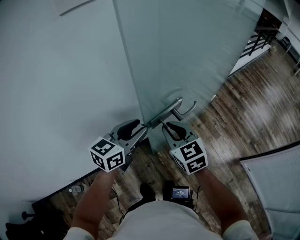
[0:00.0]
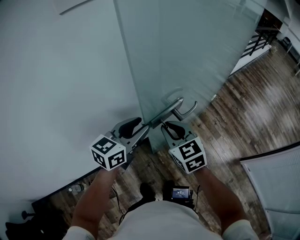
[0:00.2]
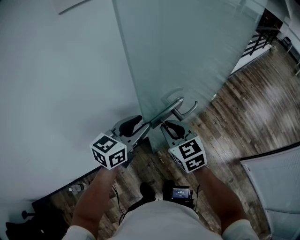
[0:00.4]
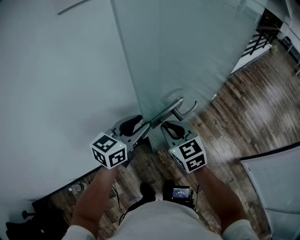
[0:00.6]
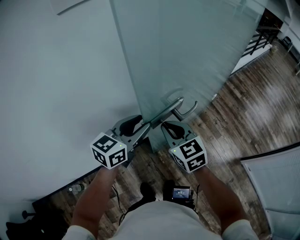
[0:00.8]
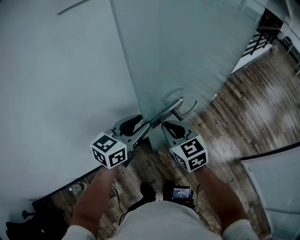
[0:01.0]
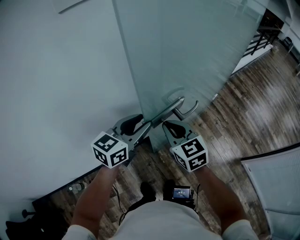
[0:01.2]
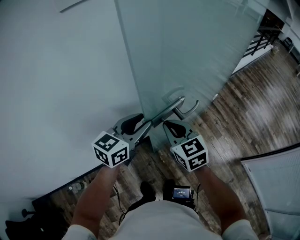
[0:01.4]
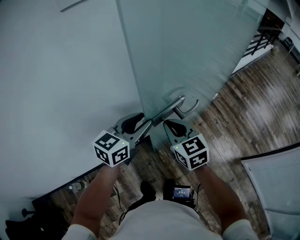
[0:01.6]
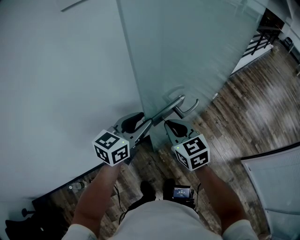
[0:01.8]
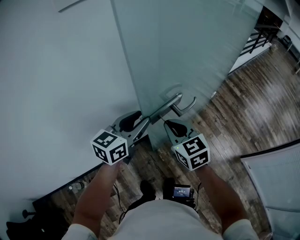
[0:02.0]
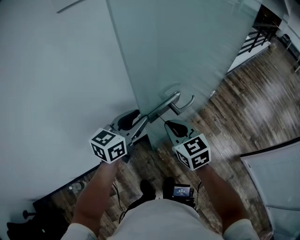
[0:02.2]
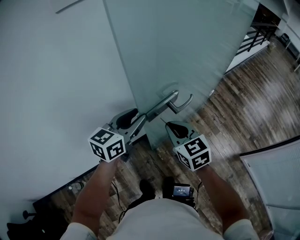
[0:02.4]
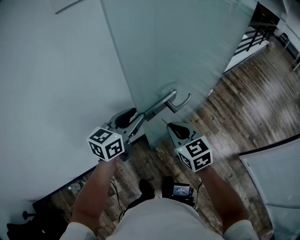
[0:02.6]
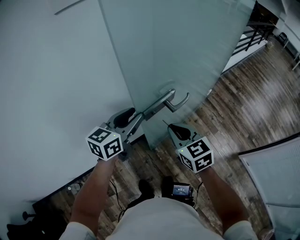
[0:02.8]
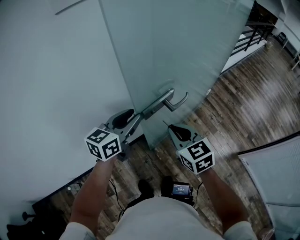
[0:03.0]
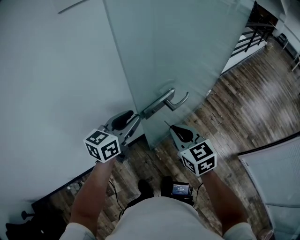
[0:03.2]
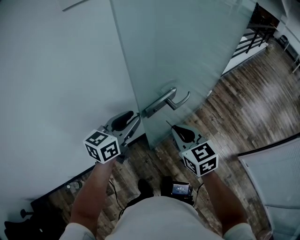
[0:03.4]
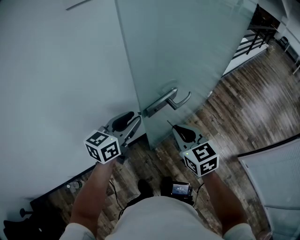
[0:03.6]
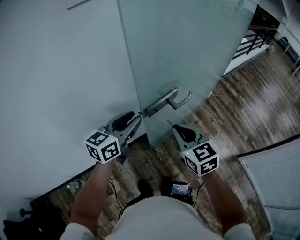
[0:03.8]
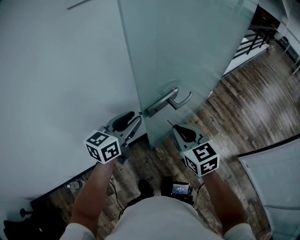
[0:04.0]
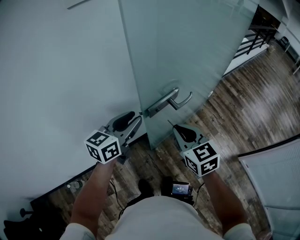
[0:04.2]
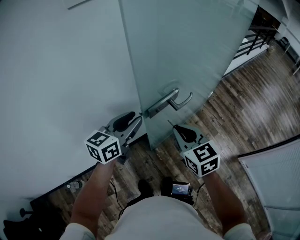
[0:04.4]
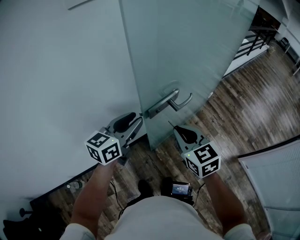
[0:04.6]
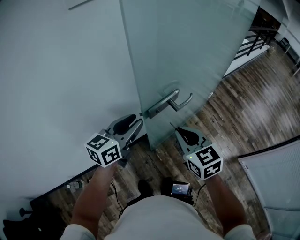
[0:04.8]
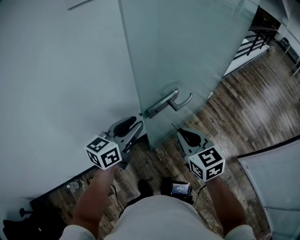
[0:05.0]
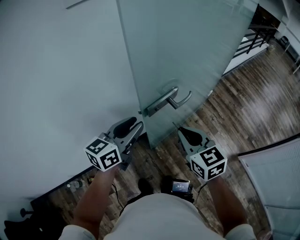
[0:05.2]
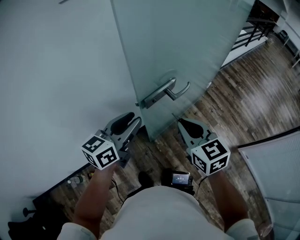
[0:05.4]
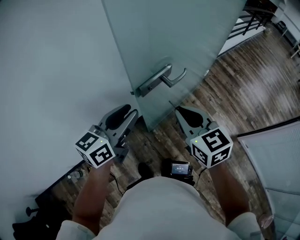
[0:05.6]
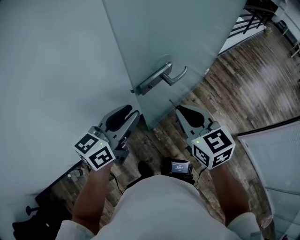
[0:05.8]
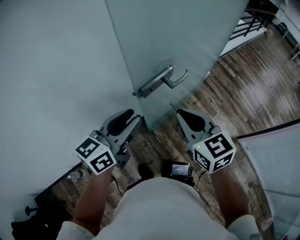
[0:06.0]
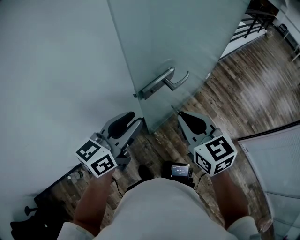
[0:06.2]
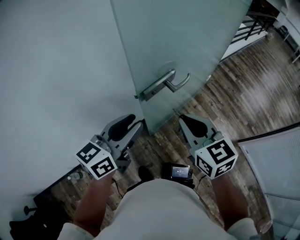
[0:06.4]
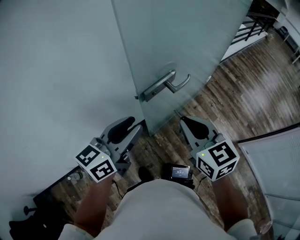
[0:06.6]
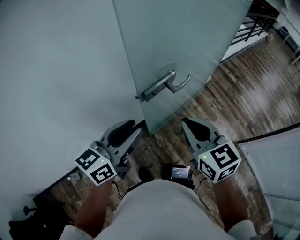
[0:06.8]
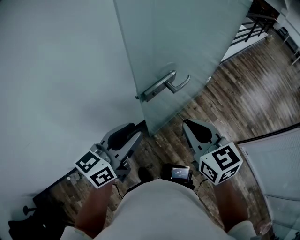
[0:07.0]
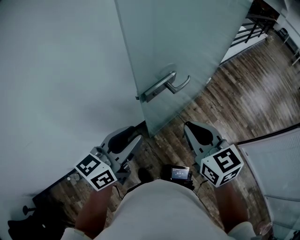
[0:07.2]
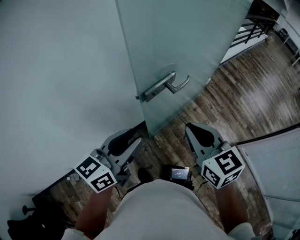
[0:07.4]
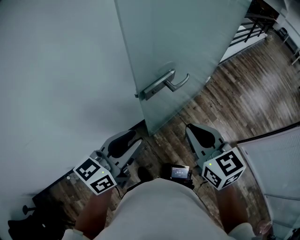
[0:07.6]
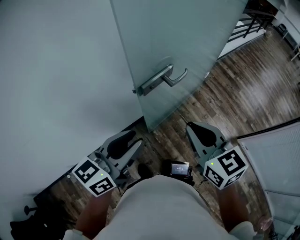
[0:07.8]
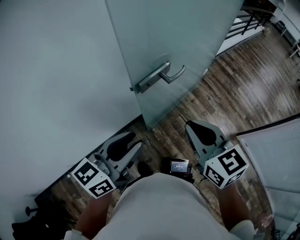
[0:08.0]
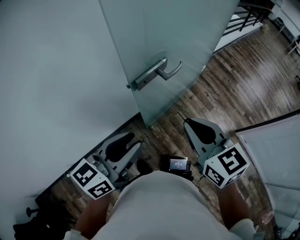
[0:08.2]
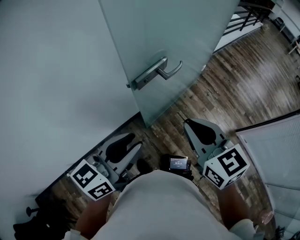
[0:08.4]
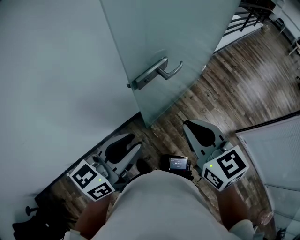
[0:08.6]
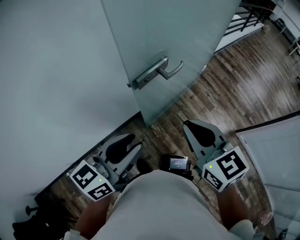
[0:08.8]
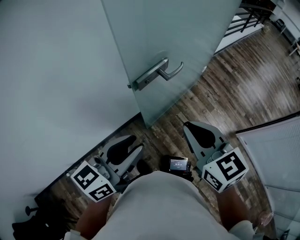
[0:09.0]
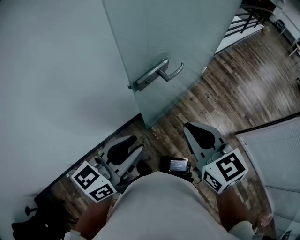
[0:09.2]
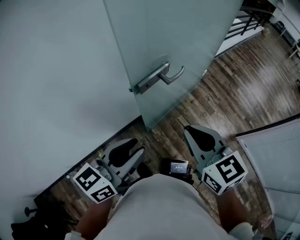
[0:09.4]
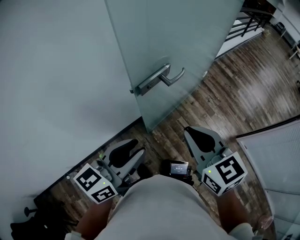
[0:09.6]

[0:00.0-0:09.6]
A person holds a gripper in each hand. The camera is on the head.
0:00.0 to 0:01.6: There are only small adjustments of the grippers.
0:01.6 to 0:03.2: The right gripper shifts approximately 10 cm to the right and backward.
0:03.2 to 0:04.8: There are only small adjustments of the grippers.
0:04.8 to 0:06.4: The left gripper moves backward, some 5 cm. The right gripper changes place by some 5 cm.
0:06.4 to 0:08.0: The two grippers go about 5 cm backward.
0:08.0 to 0:09.6: The grippers stay close to where they were, moving slightly.

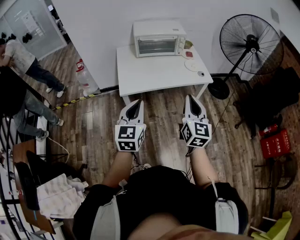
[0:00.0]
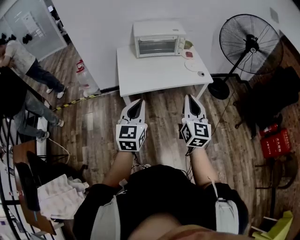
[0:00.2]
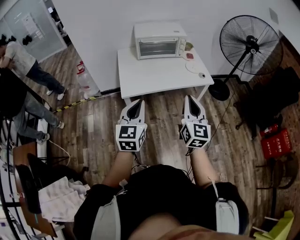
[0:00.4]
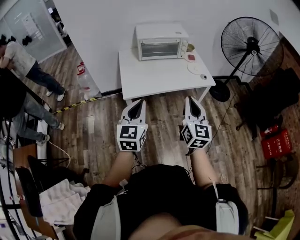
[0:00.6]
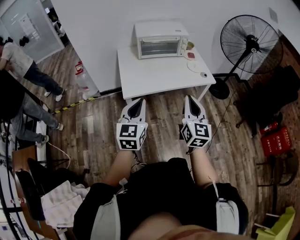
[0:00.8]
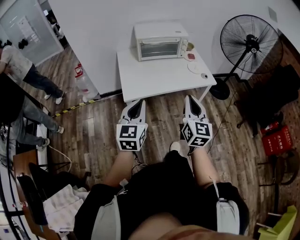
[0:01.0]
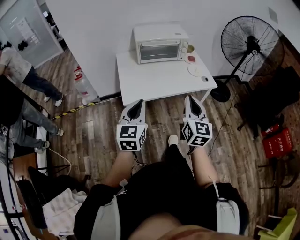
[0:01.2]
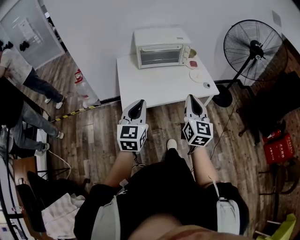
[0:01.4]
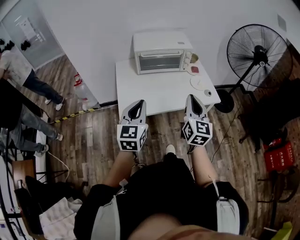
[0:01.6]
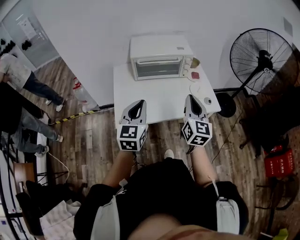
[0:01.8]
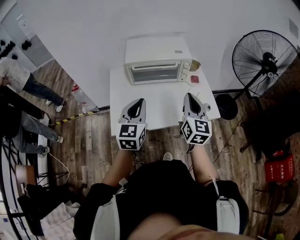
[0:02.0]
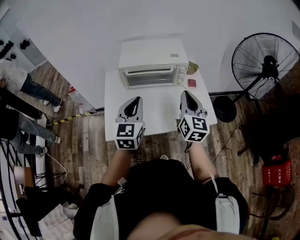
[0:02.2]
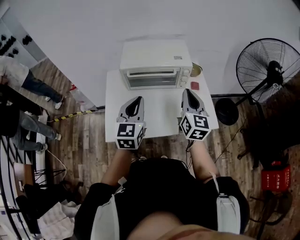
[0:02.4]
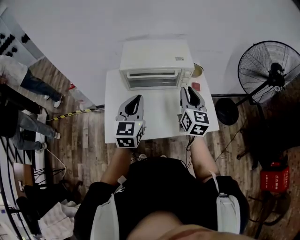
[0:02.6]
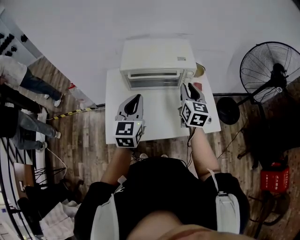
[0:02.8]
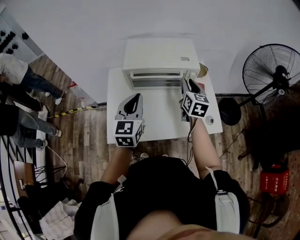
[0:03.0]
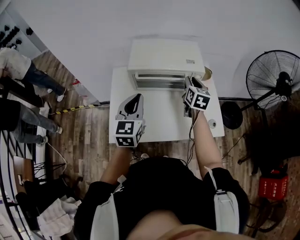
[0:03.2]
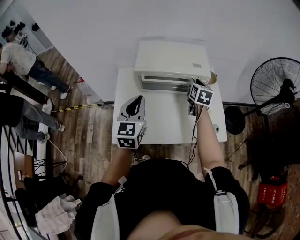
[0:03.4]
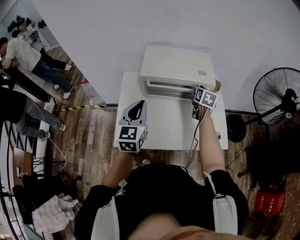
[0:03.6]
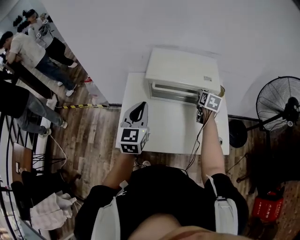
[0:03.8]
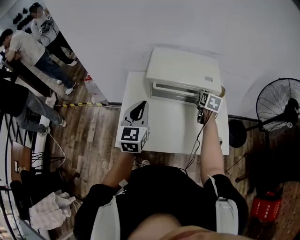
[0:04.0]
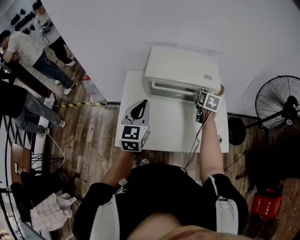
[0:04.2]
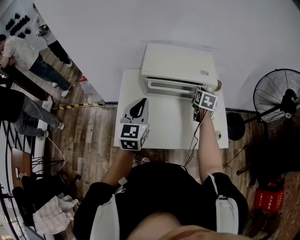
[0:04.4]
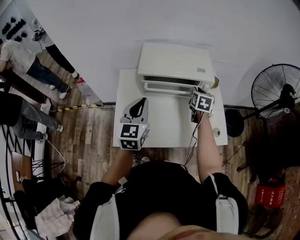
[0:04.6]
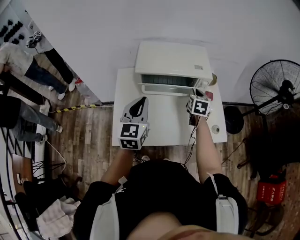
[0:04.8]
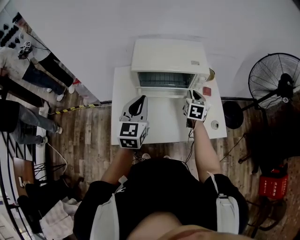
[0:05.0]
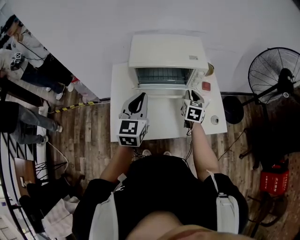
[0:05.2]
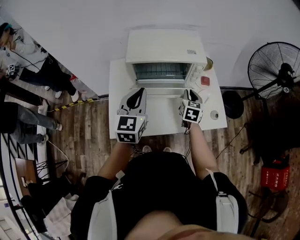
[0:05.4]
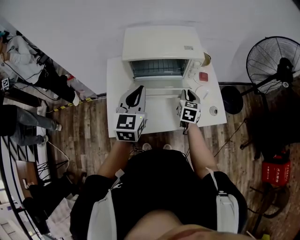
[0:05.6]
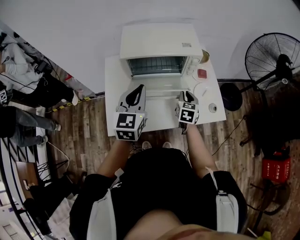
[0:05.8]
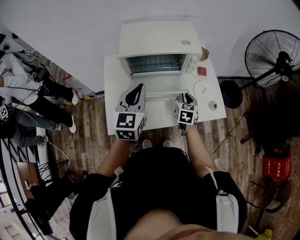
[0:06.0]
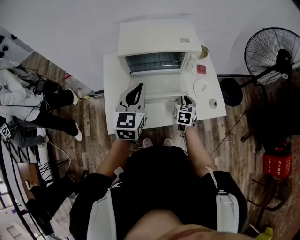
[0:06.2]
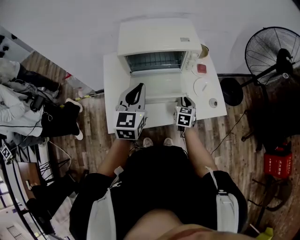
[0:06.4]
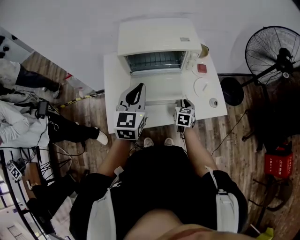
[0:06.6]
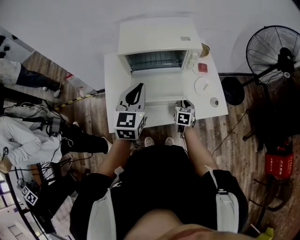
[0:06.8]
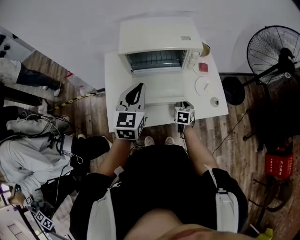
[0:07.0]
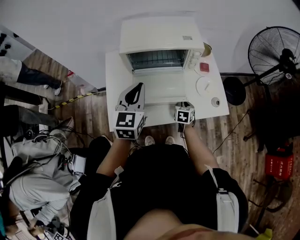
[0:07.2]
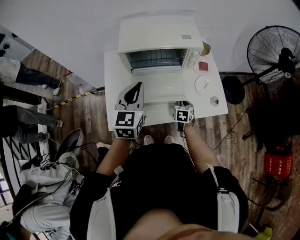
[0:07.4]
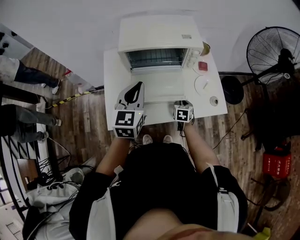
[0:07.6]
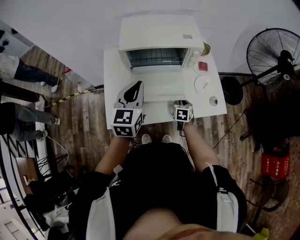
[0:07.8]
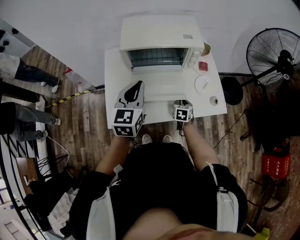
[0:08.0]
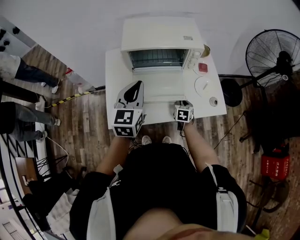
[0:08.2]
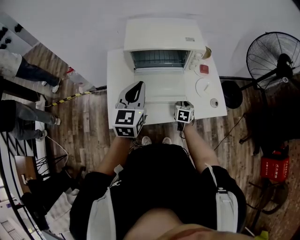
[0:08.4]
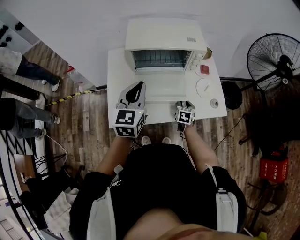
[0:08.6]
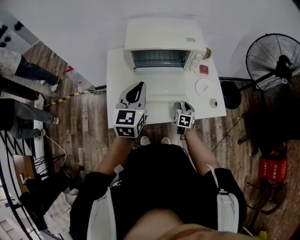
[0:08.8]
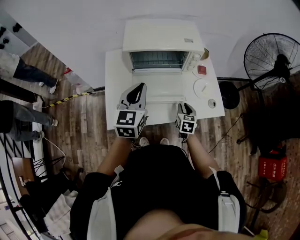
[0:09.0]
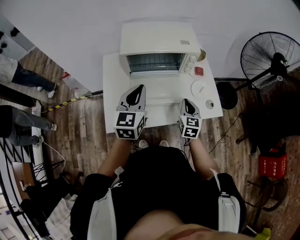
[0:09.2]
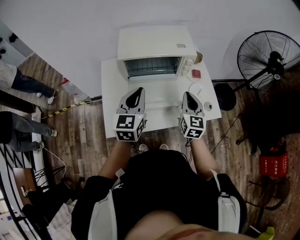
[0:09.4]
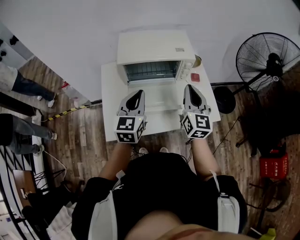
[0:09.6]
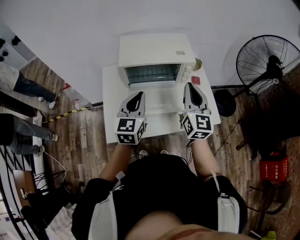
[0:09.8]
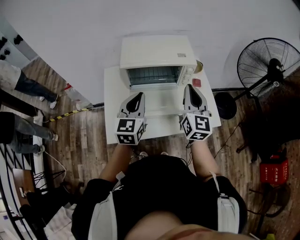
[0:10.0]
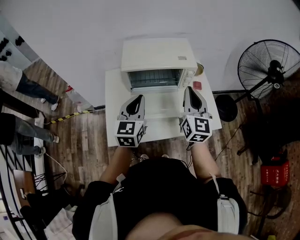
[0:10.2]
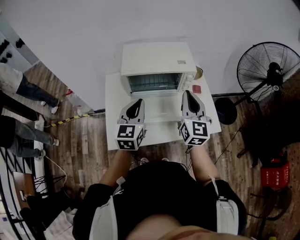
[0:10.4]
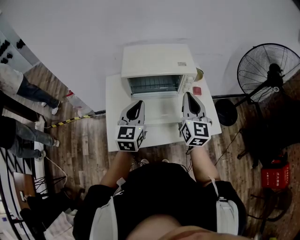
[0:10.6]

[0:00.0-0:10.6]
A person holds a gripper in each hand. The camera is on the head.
0:00.0 to 0:01.6: The grippers both shift forward by about 20 cm.
0:01.6 to 0:03.0: The grippers both shift forward by about 30 cm. The right gripper swivels about 20 degrees, and opens.
0:03.0 to 0:04.6: The right gripper is displaced downward and forward by roughly 10 cm. Meanwhile the left gripper shifts by roughly 5 cm.
0:04.6 to 0:06.0: The right gripper heads backward and downward, covering some 15 cm, while the left gripper goes approximately 5 cm to the right.
0:06.0 to 0:07.6: The right gripper travels downward by some 10 cm.
0:07.6 to 0:09.0: The right gripper is displaced upward by about 5 cm.
0:09.0 to 0:10.6: The right gripper goes some 30 cm upward, angles its fingers upward, by roughly 40 degrees, and closes up.

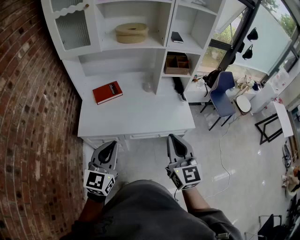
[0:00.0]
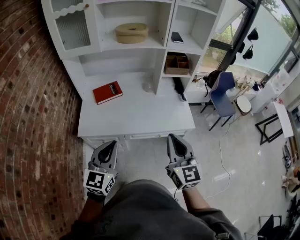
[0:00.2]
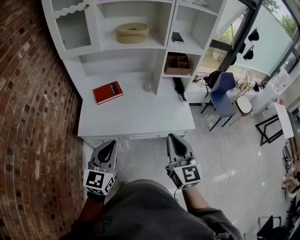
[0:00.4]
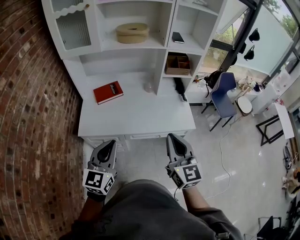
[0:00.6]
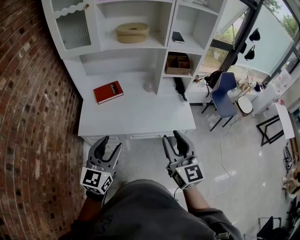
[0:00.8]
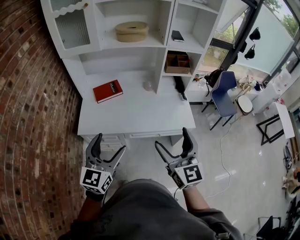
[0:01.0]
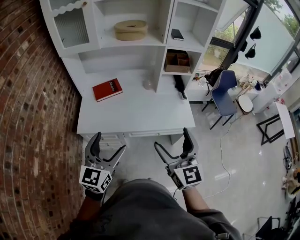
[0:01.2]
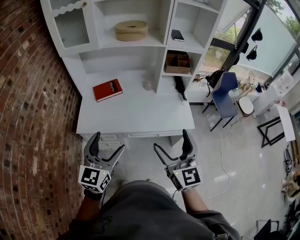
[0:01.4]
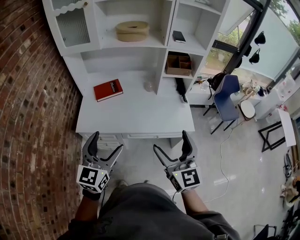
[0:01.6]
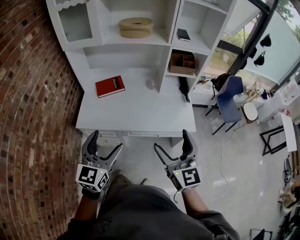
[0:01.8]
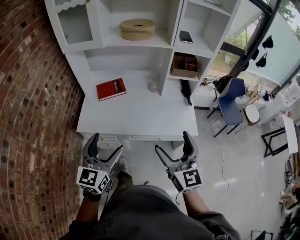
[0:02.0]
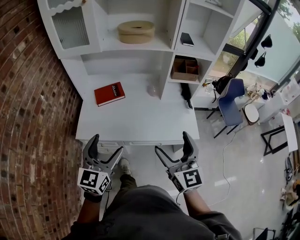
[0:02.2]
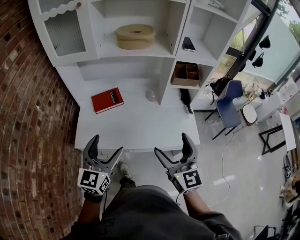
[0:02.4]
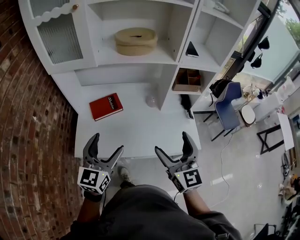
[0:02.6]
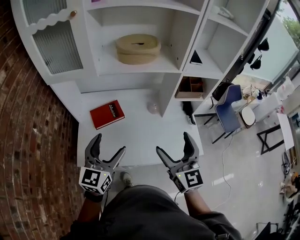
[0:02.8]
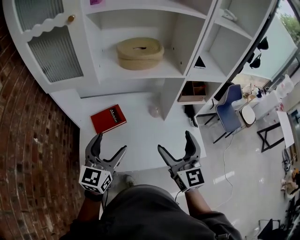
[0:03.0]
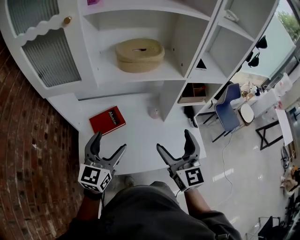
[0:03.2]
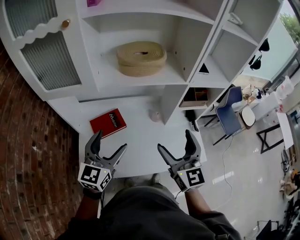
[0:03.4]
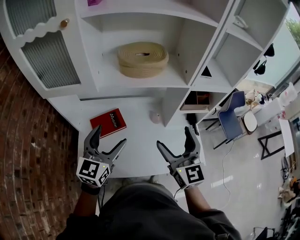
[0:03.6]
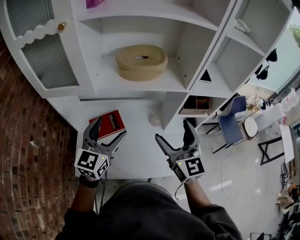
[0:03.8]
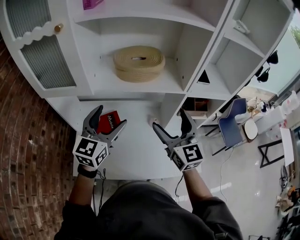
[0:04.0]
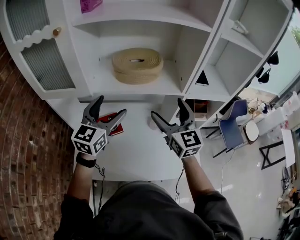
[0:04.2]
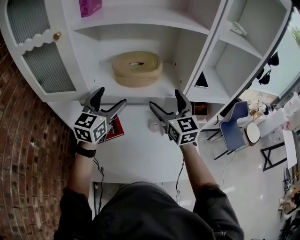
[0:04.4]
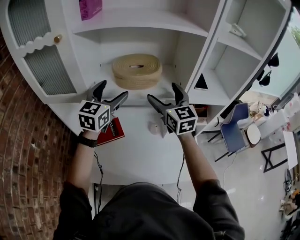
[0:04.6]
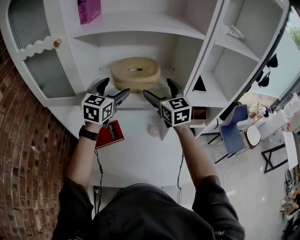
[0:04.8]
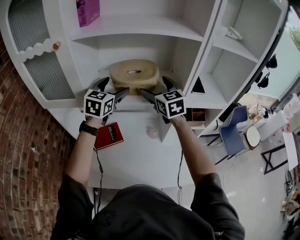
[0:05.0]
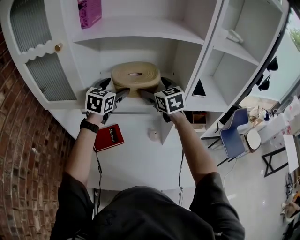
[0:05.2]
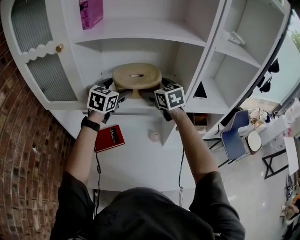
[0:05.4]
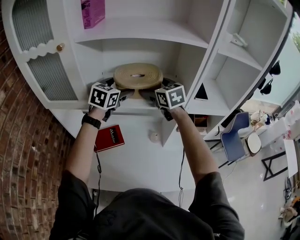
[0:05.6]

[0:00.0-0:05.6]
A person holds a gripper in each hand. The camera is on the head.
0:00.0 to 0:01.4: The left gripper opens up. Meanwhile the right gripper opens.
0:01.4 to 0:02.8: Both grippers move forward, some 25 cm.
0:02.8 to 0:04.2: The two grippers go approximately 25 cm forward.
0:04.2 to 0:05.6: Both grippers travel together forward, some 15 cm. The right gripper swivels roughly 20 degrees.
